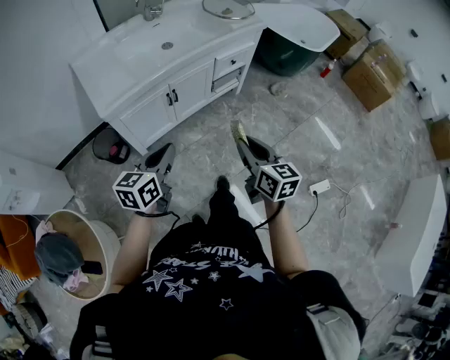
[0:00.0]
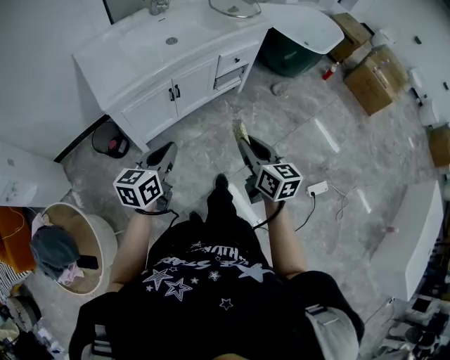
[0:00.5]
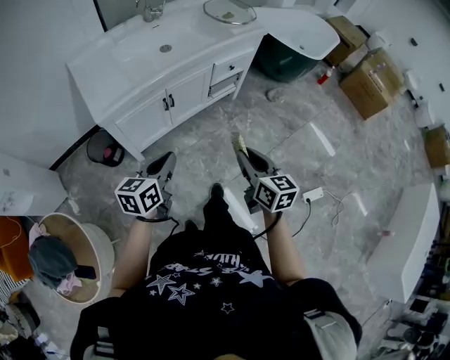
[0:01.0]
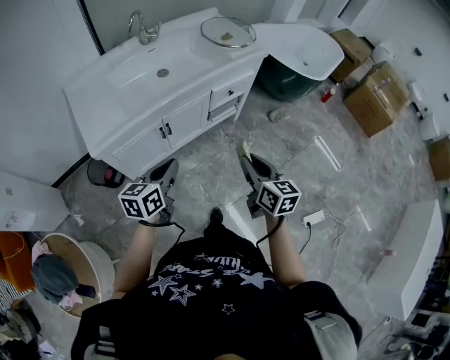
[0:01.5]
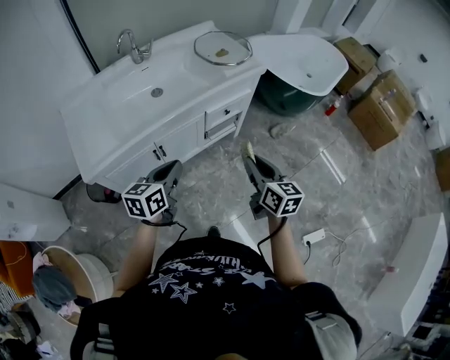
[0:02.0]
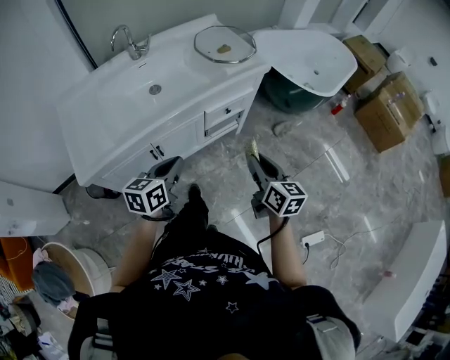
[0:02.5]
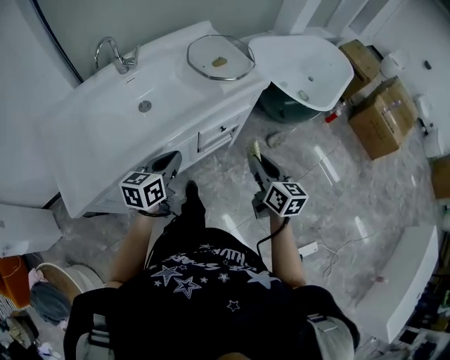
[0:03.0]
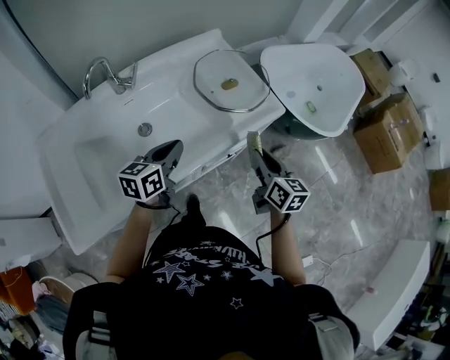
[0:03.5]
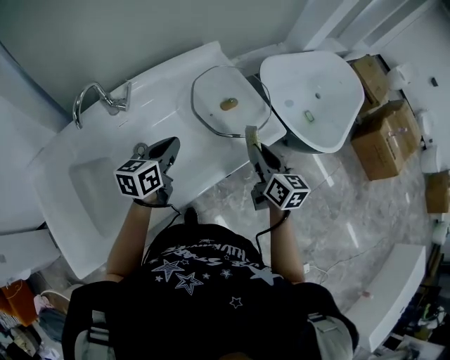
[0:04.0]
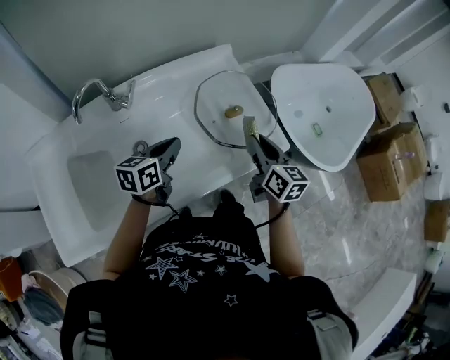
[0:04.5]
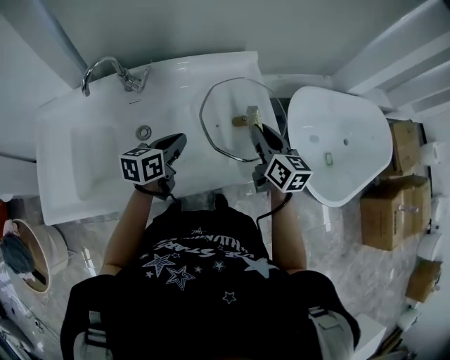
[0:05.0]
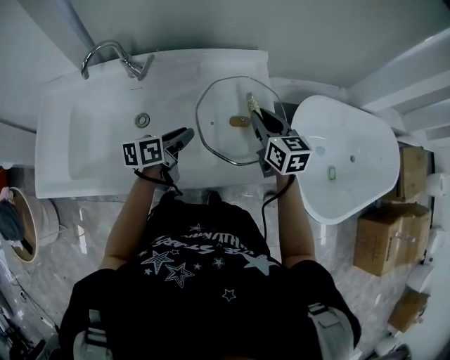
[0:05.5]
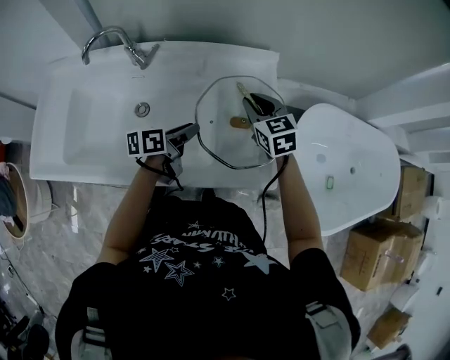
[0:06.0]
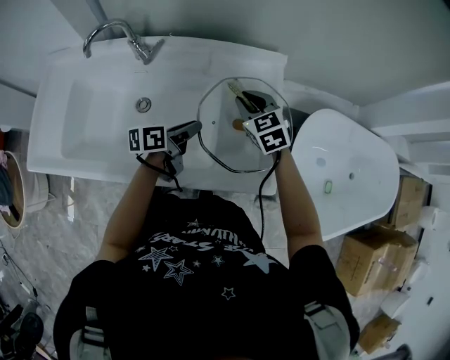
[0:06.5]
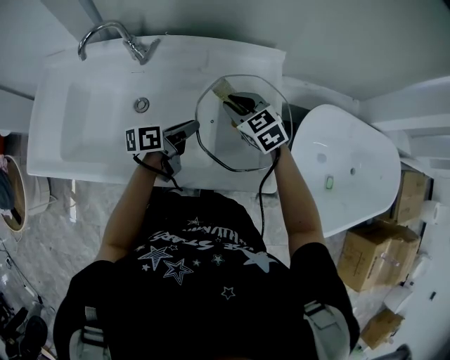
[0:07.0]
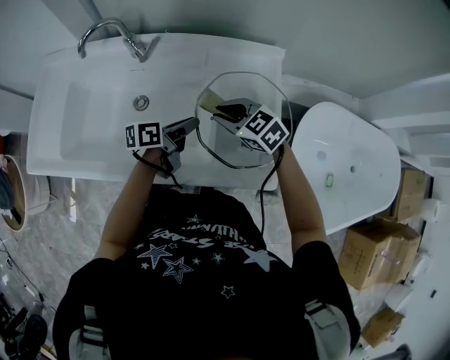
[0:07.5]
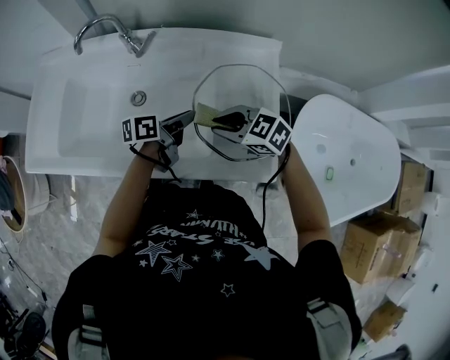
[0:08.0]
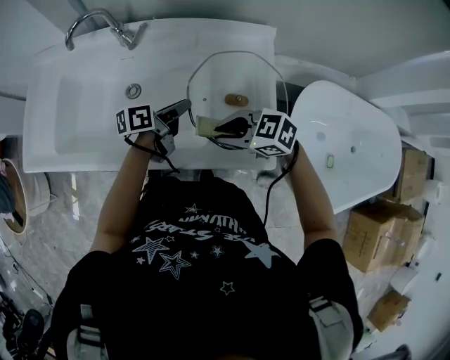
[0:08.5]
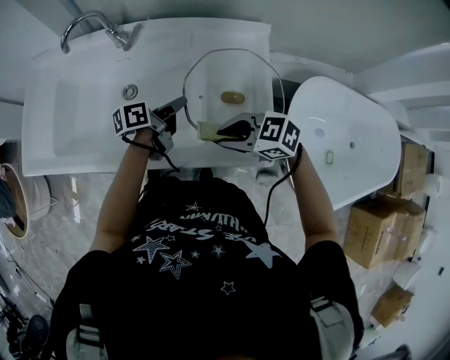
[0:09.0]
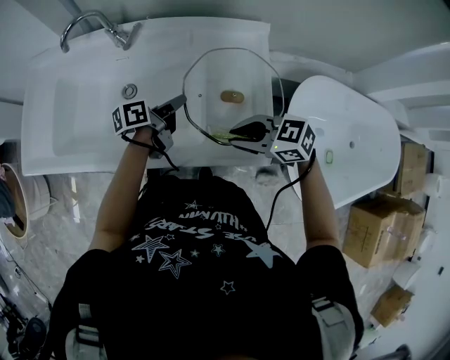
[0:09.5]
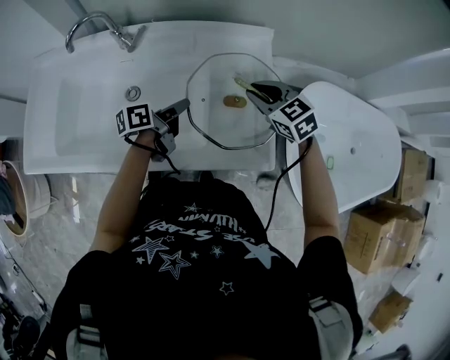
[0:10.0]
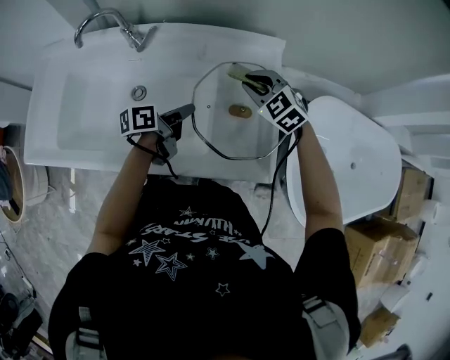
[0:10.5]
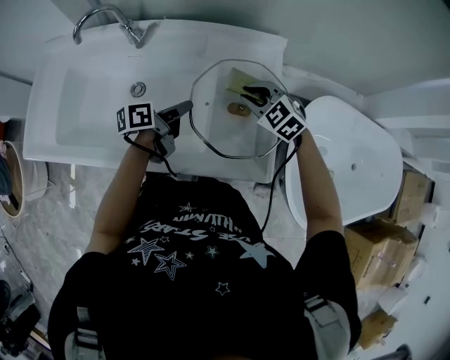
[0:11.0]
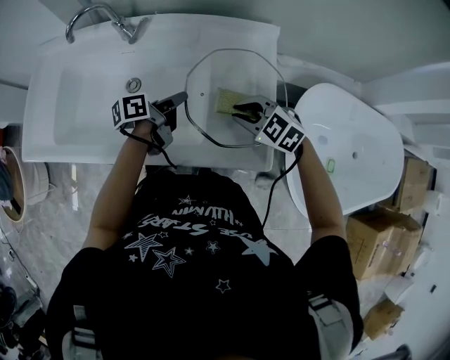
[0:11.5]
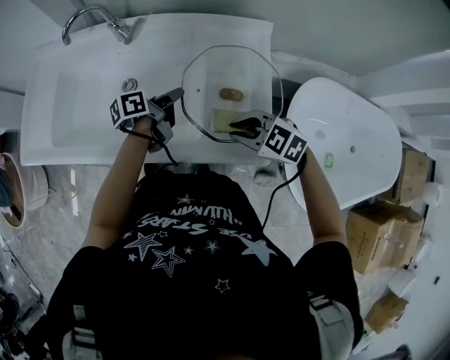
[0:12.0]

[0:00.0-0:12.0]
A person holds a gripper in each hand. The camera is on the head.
0:00.0 to 0:02.0: Both grippers travel together forward and to the right, roughly 25 cm.
0:02.0 to 0:04.0: The pair of grippers is taken forward, some 50 cm.
0:04.0 to 0:06.0: The right gripper moves approximately 25 cm, and swivels some 60 degrees, while the left gripper ends up roughly 15 cm from where it was, swivels about 40 degrees, and opens up.
0:06.0 to 0:08.0: The right gripper ends up some 15 cm from where it was, and rotates some 50 degrees.
0:08.0 to 0:10.0: The right gripper ends up about 15 cm from where it was, and rotates approximately 30 degrees.
0:10.0 to 0:12.0: The right gripper shifts roughly 15 cm backward, and changes its angle by roughly 30 degrees.

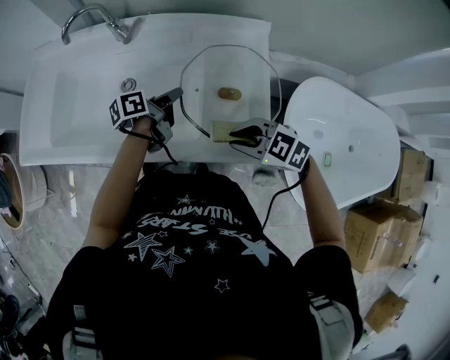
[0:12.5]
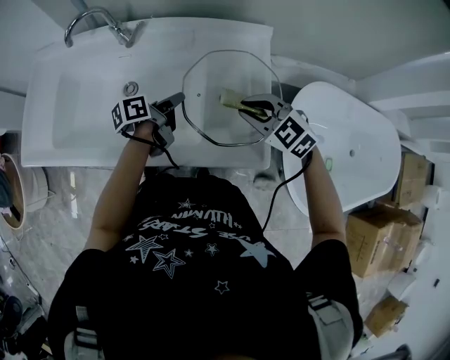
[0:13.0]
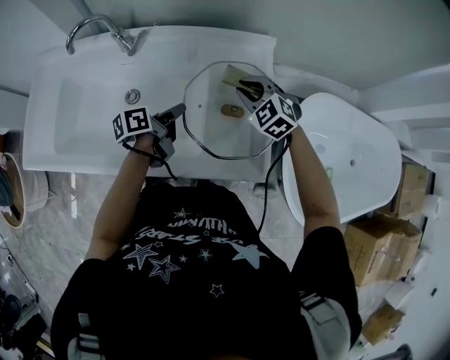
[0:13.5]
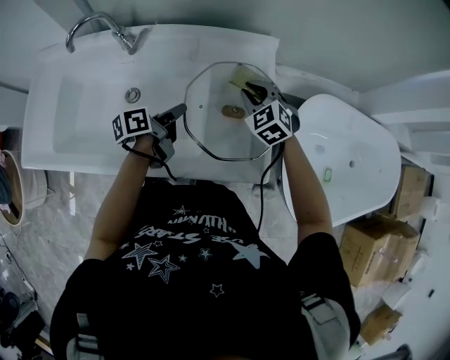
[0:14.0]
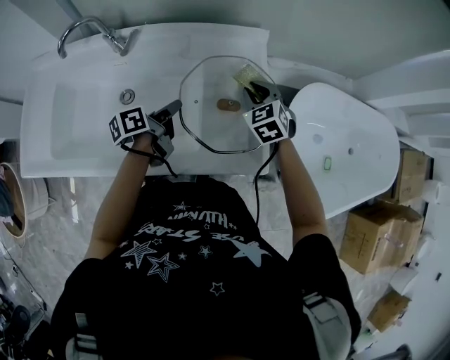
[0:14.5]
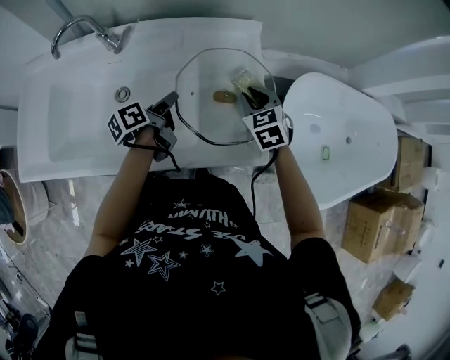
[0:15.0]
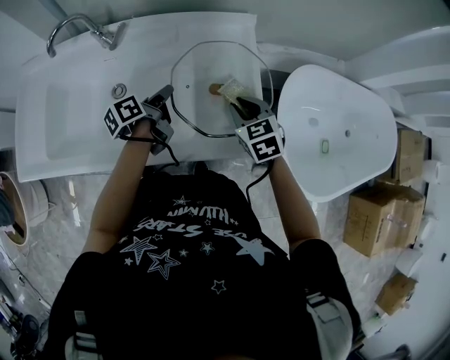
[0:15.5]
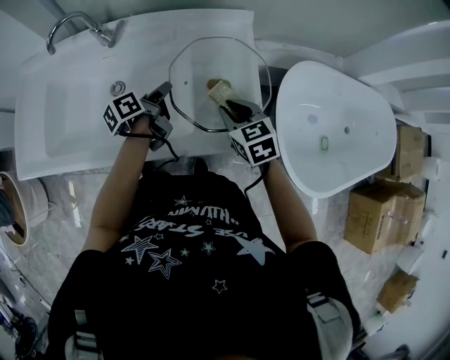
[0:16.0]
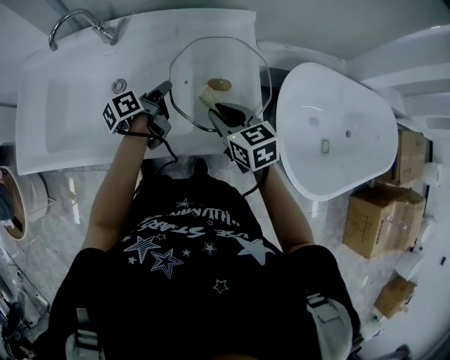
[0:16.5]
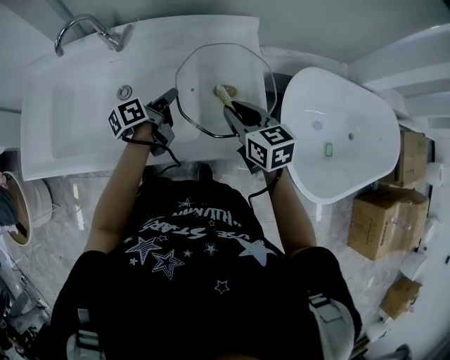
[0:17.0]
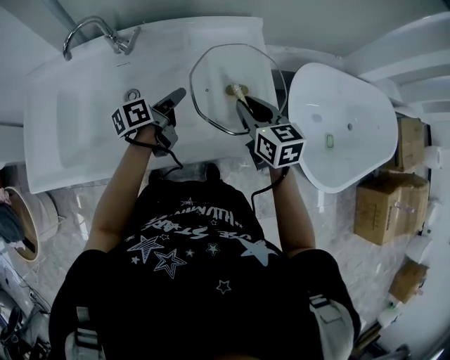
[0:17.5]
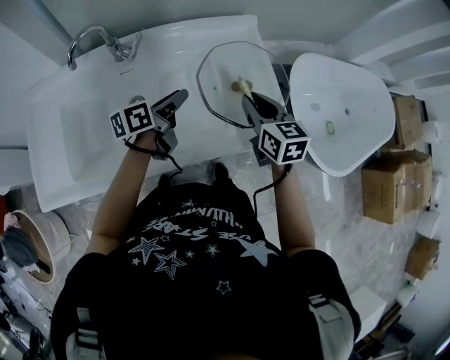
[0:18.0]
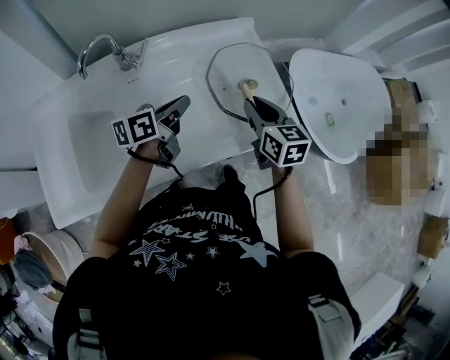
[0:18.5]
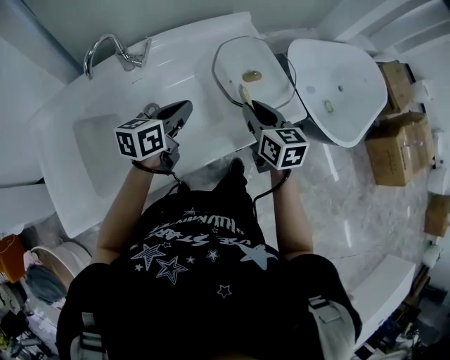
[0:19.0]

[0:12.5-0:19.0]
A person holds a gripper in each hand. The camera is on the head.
0:12.5 to 0:14.5: The right gripper ends up some 20 cm from where it was, and changes its angle by approximately 50 degrees.
0:14.5 to 0:17.0: The right gripper moves backward, roughly 10 cm, and turns by approximately 40 degrees.
0:17.0 to 0:19.0: The left gripper ends up some 15 cm from where it was, and twists about 40 degrees clockwise, seen from behind. The right gripper changes place by roughly 15 cm, and rotates approximately 30 degrees.

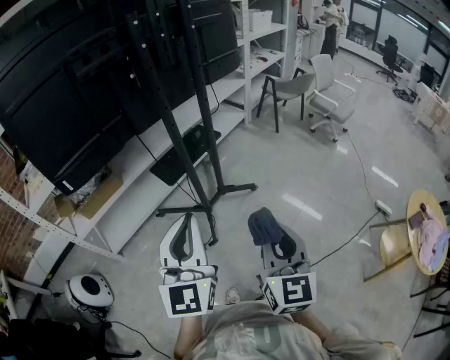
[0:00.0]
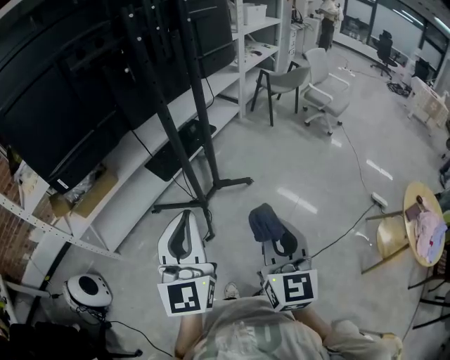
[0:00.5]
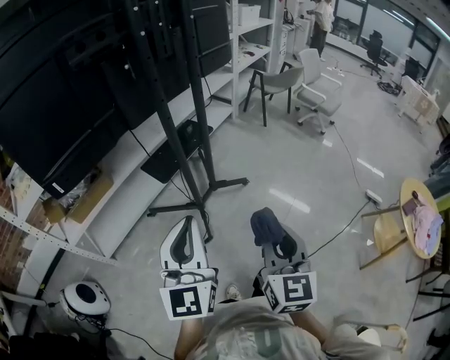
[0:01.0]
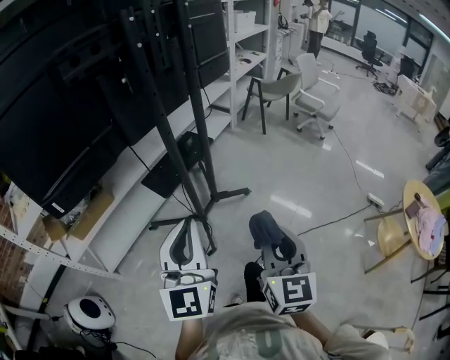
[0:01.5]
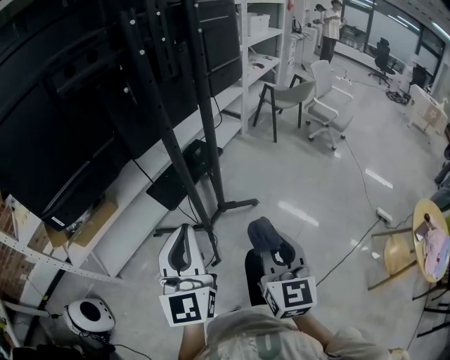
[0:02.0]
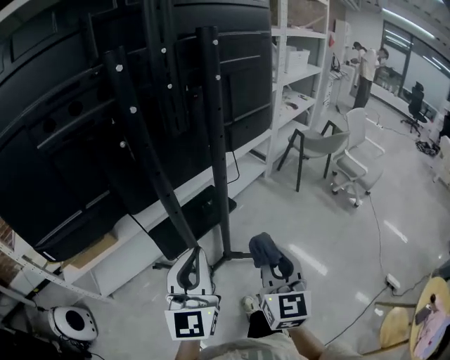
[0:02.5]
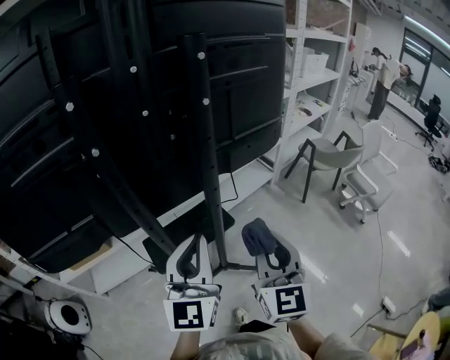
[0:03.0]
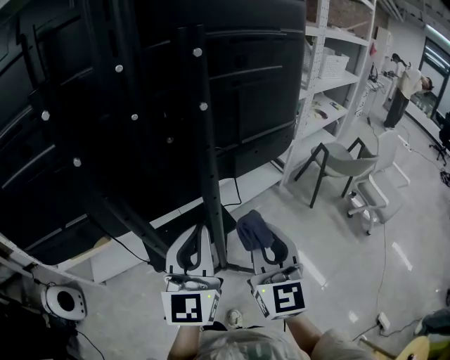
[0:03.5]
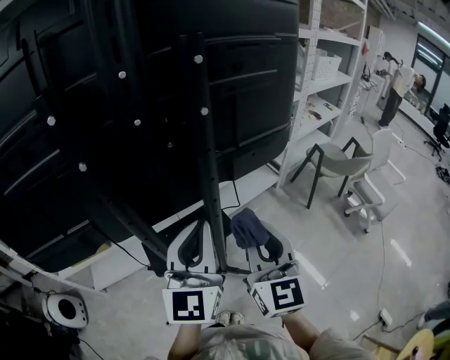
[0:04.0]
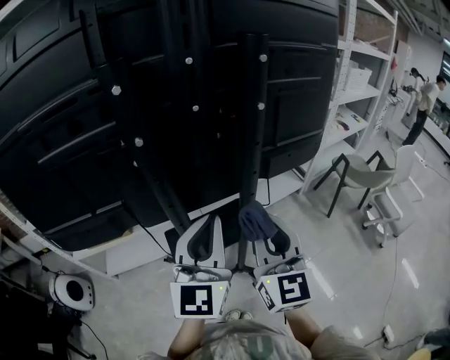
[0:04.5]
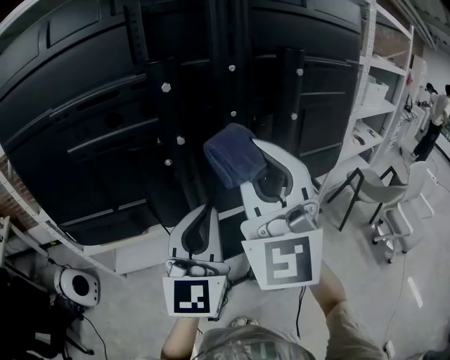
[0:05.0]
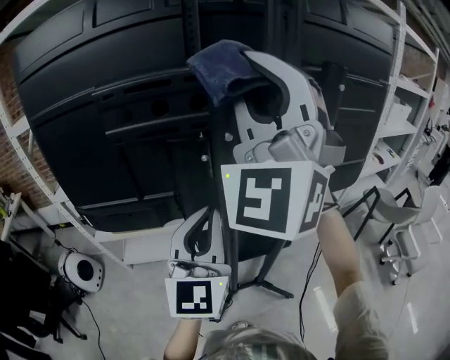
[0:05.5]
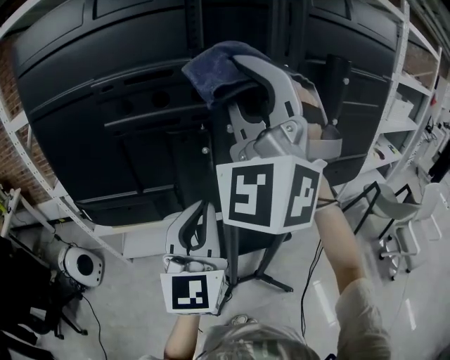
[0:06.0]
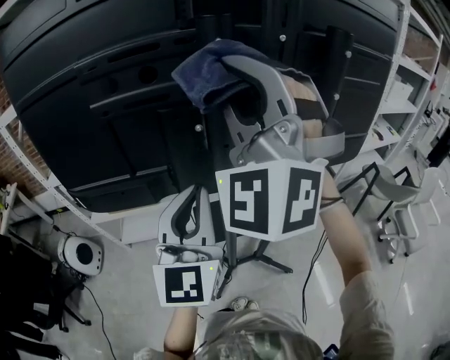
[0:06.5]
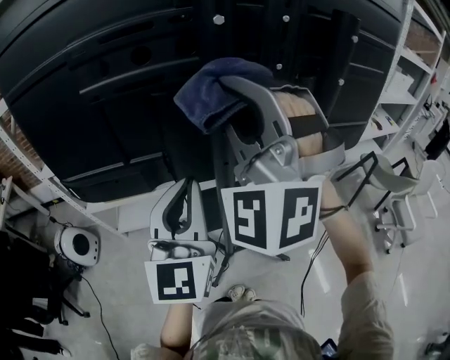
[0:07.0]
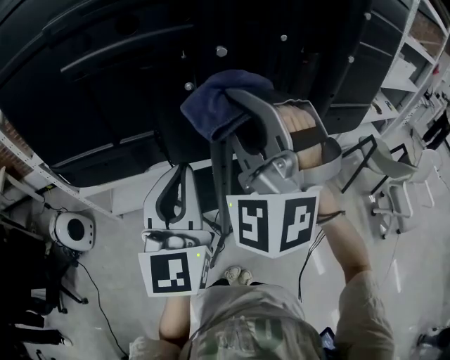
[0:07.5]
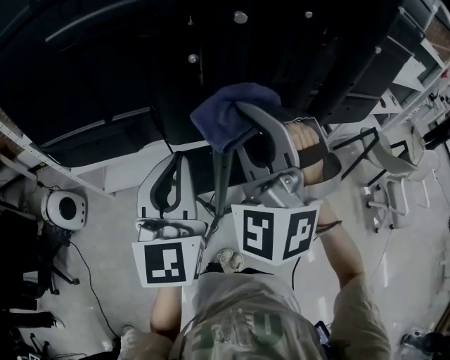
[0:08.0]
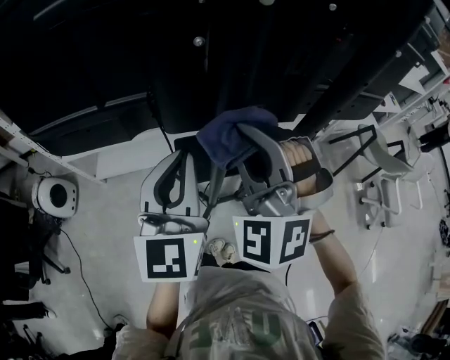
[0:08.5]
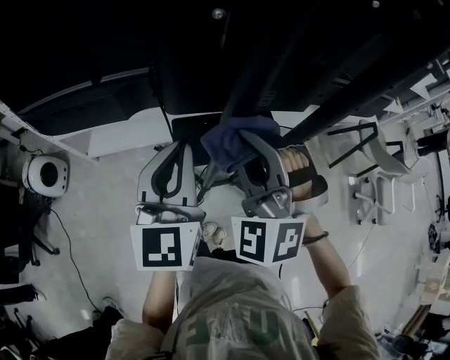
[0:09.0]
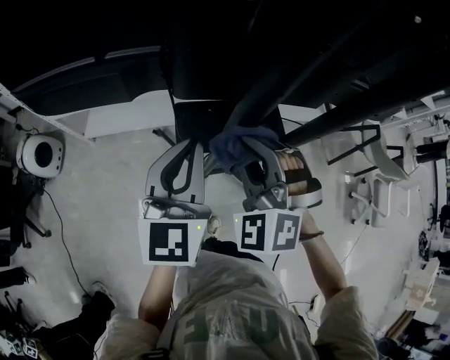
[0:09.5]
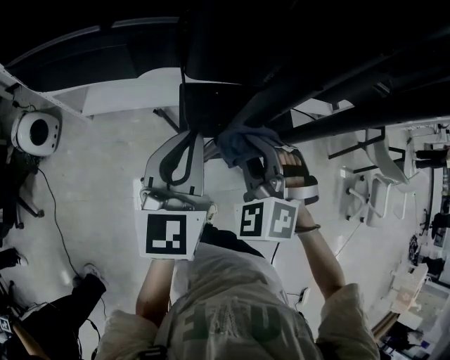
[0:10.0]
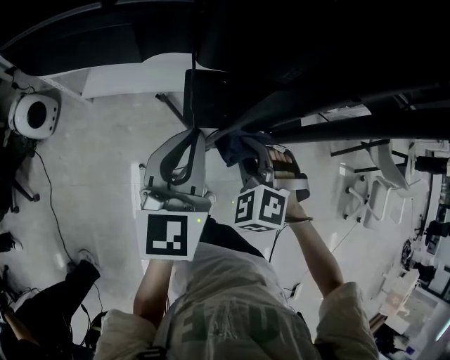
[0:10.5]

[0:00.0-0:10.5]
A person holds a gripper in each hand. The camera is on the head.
0:00.0 to 0:02.0: Both grippers travel together forward and to the left, some 15 cm.
0:02.0 to 0:04.0: The right gripper is displaced forward by roughly 40 cm, and changes its angle by about 30 degrees; the left gripper travels forward and to the right by approximately 40 cm.
0:04.0 to 0:06.5: The left gripper heads to the left, covering about 20 cm, and swivels roughly 20 degrees; the right gripper goes roughly 35 cm to the left and upward, and rotates around the line of its fingers by about 60 degrees, counterclockwise from behind.
0:06.5 to 0:08.5: The left gripper travels downward by roughly 10 cm. Meanwhile the right gripper shifts approximately 25 cm downward, and rotates some 30 degrees.
0:08.5 to 0:10.5: The right gripper travels downward by about 30 cm, and tilts its fingers roughly 40 degrees downward. The left gripper is displaced downward by about 15 cm.
